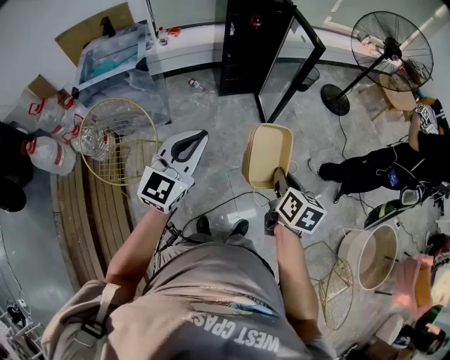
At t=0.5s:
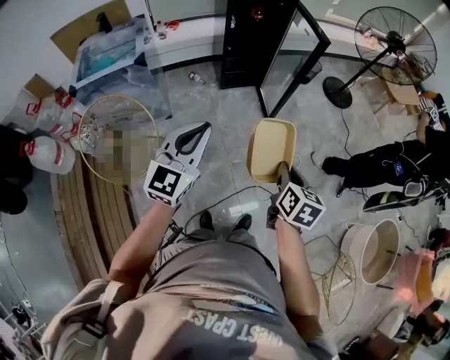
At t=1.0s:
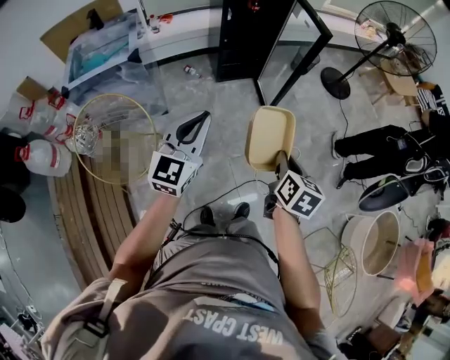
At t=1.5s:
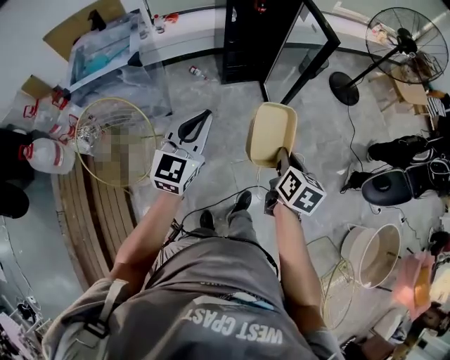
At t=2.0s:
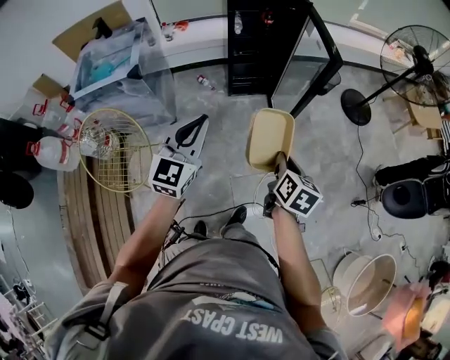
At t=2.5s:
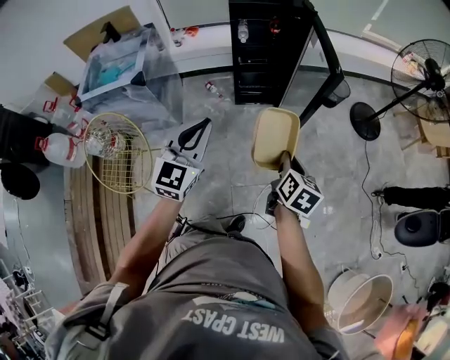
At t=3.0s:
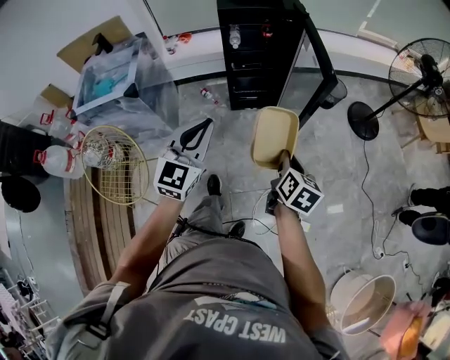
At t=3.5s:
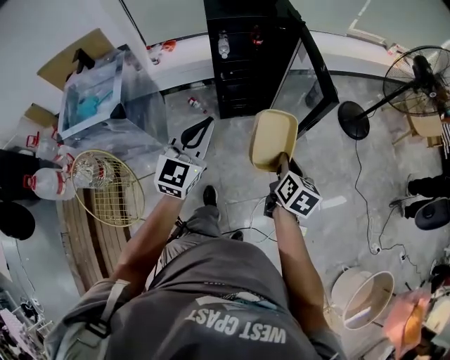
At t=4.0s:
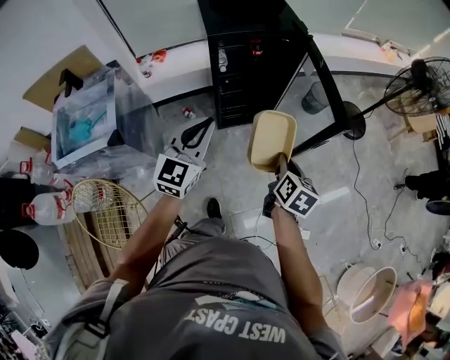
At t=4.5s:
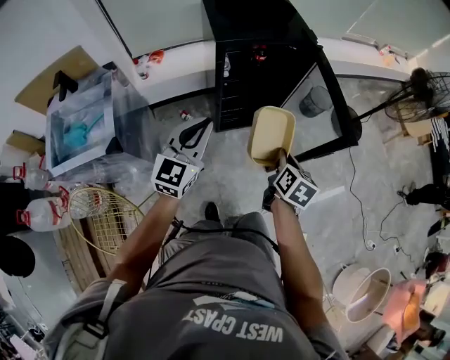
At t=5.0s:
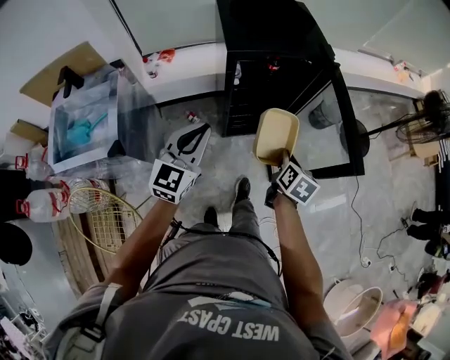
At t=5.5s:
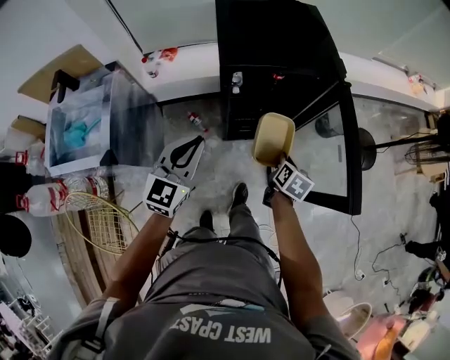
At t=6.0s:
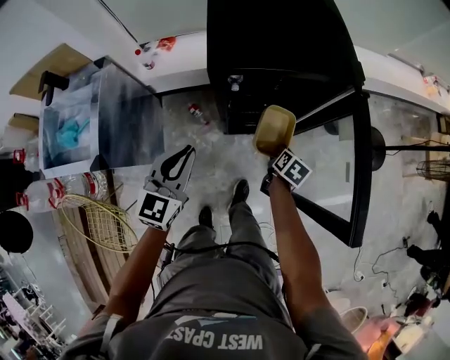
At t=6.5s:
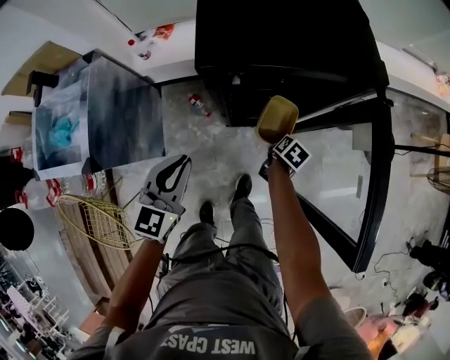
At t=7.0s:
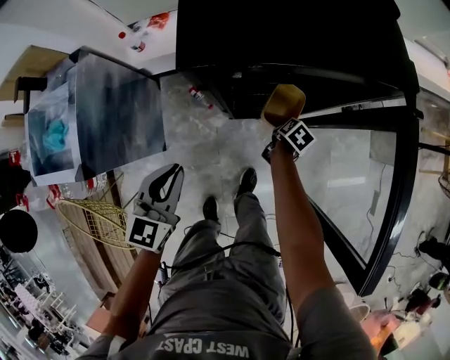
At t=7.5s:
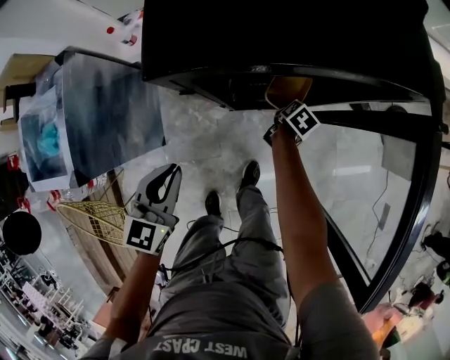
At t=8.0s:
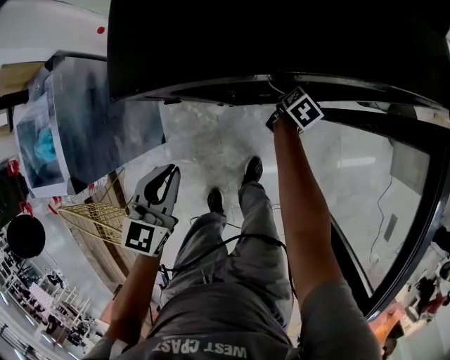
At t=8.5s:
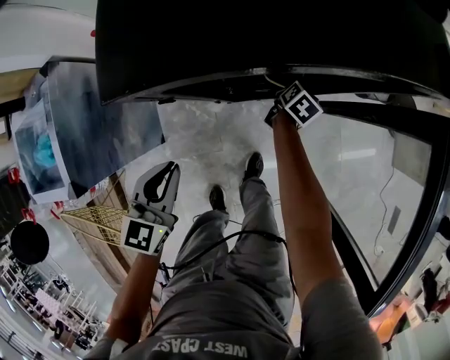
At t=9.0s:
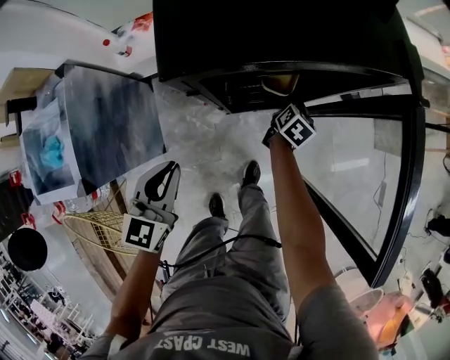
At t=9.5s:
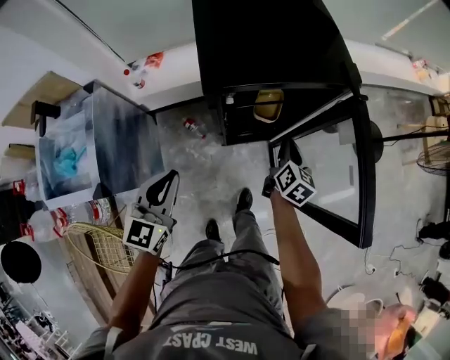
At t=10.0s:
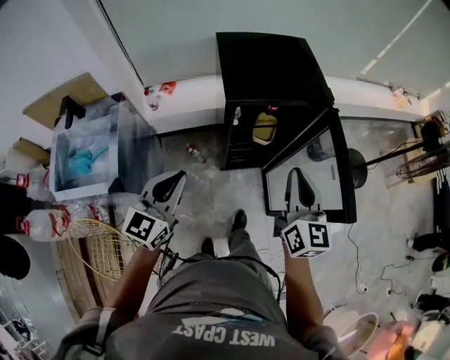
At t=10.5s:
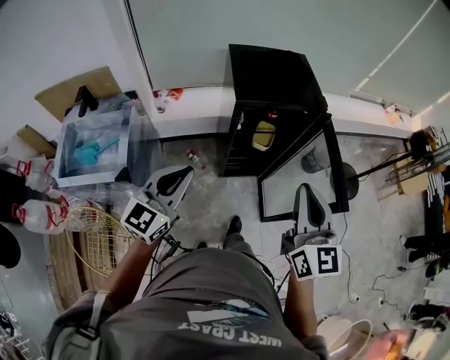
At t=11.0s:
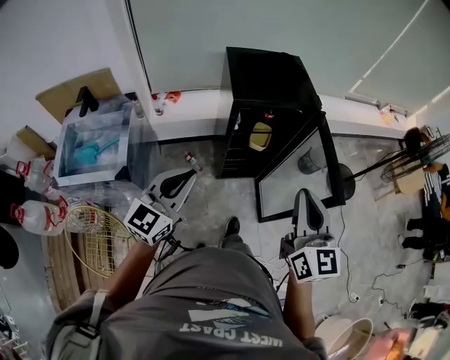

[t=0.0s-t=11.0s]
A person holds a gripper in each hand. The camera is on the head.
t=0.0s to t=2.0s: Both grippers travel together forward, approximately 20 cm.
t=2.0s to t=3.5s: Both grippers move forward, some 15 cm.
t=3.5s to t=5.5s: The right gripper travels forward, downward and to the left by some 30 cm, while the left gripper heads forward and to the left, covering about 25 cm.
t=5.5s to t=7.5s: The right gripper goes approximately 35 cm downward and forward, and changes its angle by about 20 degrees. Meanwhile the left gripper is displaced downward by some 15 cm, and changes its angle by some 20 degrees.
t=7.5s to t=9.0s: The right gripper shifts approximately 10 cm upward.
t=9.0s to t=11.0s: The right gripper moves upward and backward, roughly 60 cm, points its fingers some 40 degrees further upward, and closes. Meanwhile the left gripper heads upward and backward, covering approximately 30 cm, and rotates about 30 degrees.

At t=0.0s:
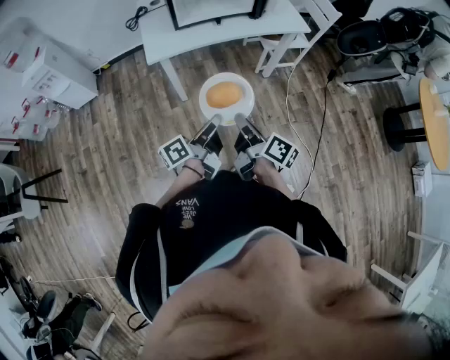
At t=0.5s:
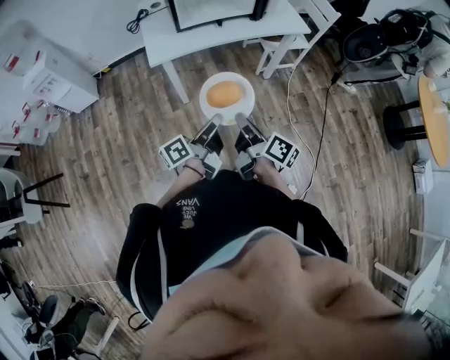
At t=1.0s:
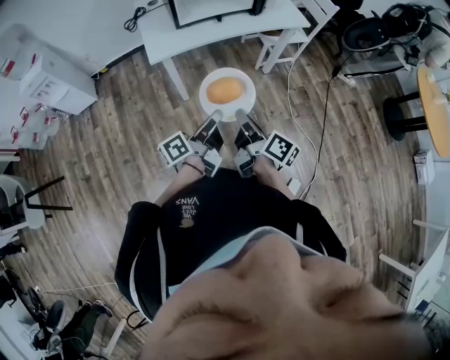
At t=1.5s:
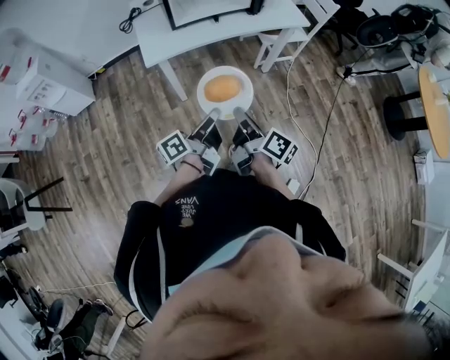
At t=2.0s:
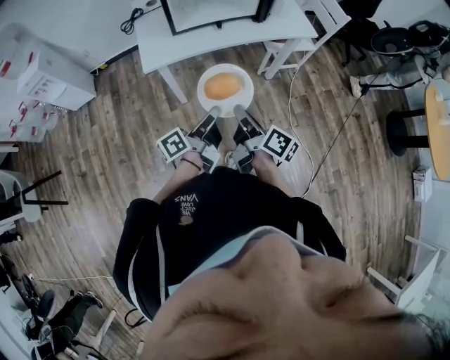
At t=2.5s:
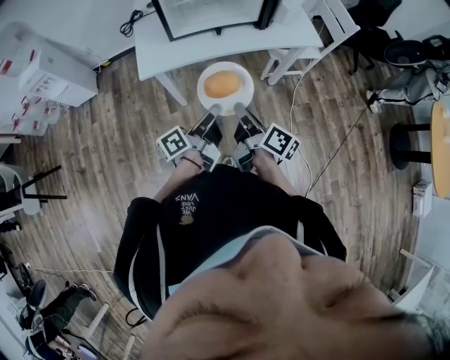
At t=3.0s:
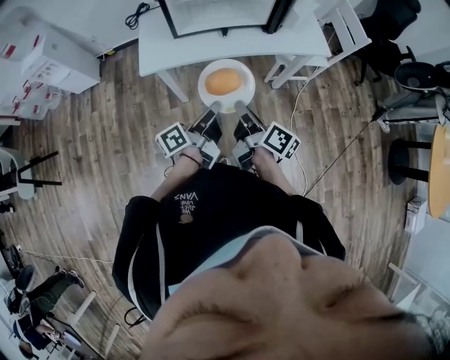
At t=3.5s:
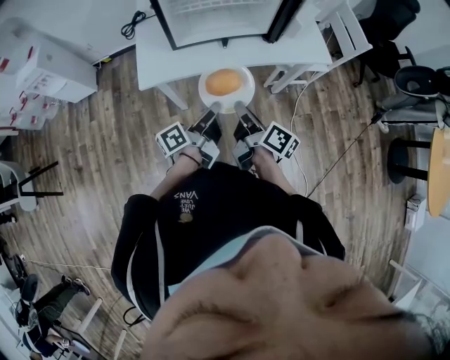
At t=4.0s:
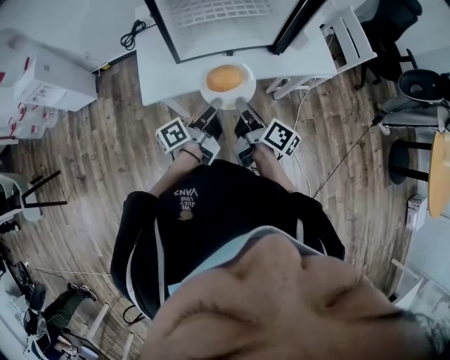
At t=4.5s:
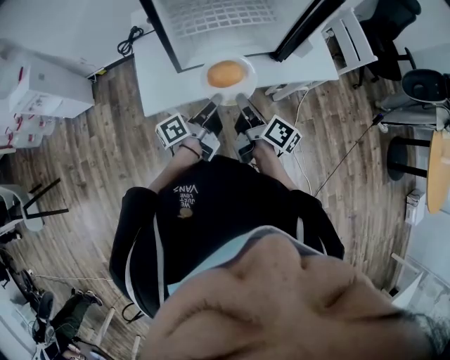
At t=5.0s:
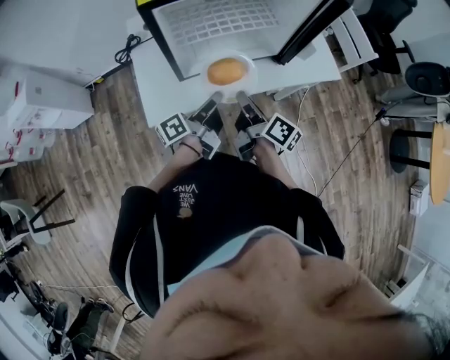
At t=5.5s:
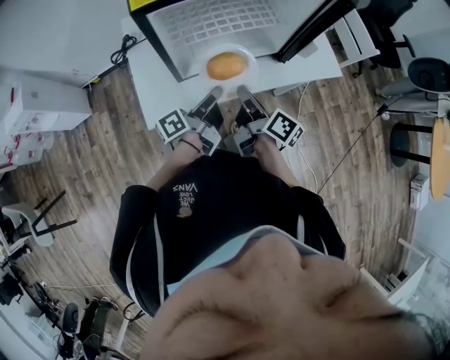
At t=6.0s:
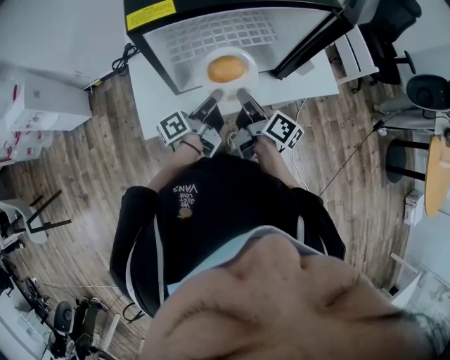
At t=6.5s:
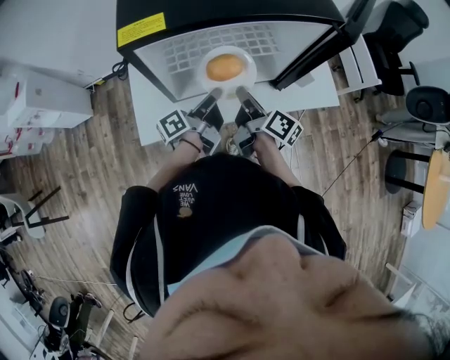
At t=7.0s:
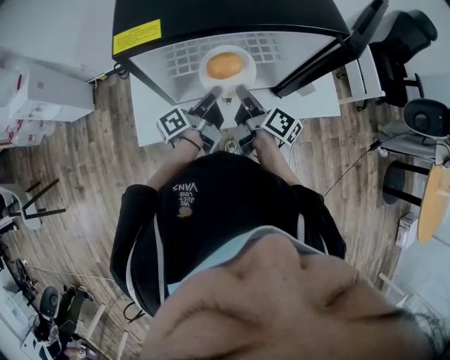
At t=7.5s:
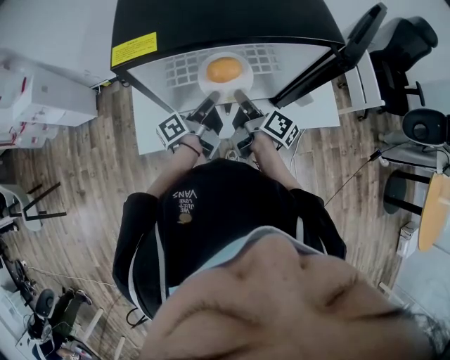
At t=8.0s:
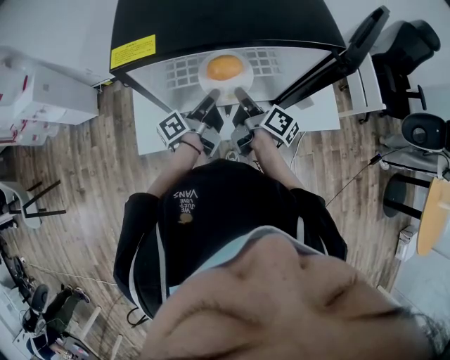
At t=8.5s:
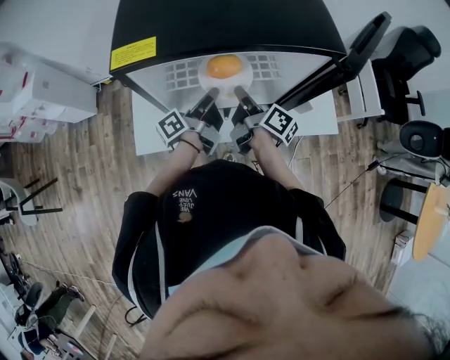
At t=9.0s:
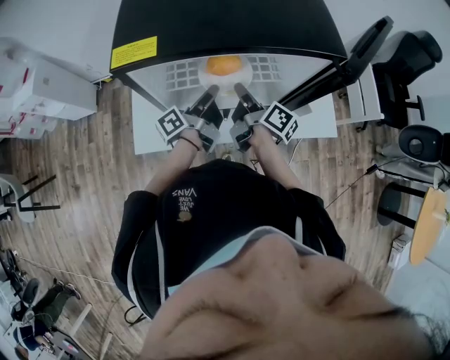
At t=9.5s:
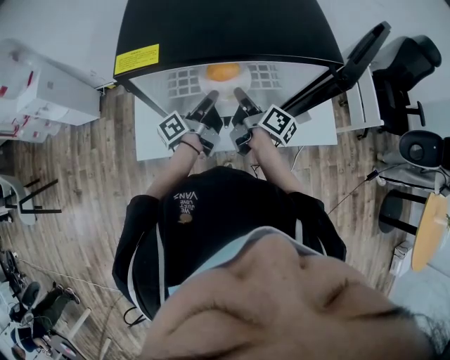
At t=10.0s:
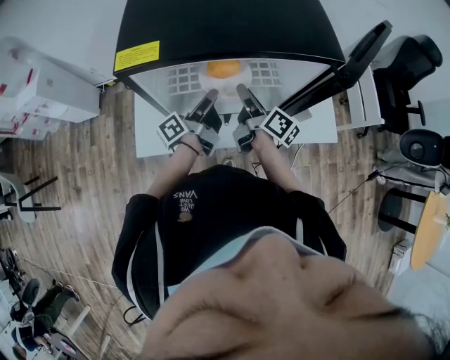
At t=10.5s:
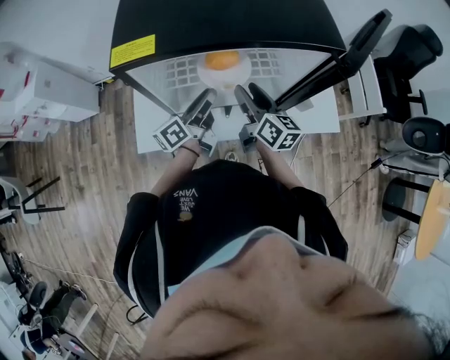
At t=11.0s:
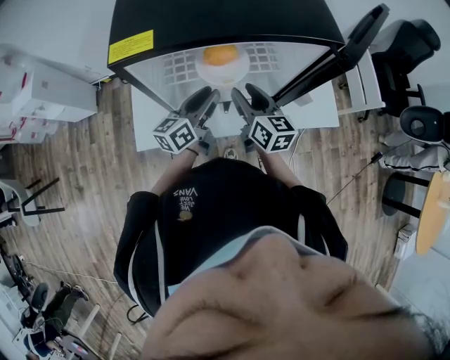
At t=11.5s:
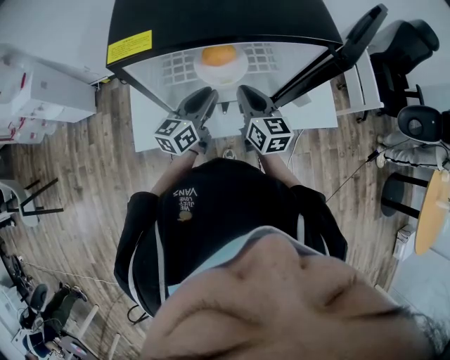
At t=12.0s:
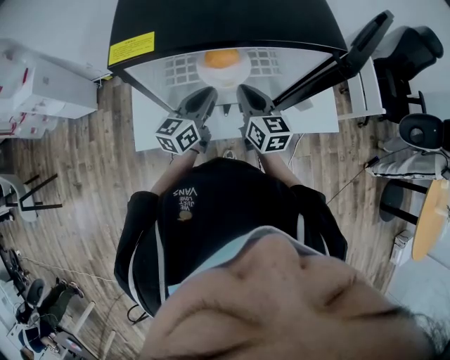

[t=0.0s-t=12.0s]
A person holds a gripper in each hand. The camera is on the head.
t=0.0s to t=2.0s: Both grippers travel together forward, some 10 cm.
t=2.0s to t=4.0s: The two grippers go approximately 25 cm forward.
t=4.0s to t=6.0s: The grippers both shift forward by approximately 15 cm.
t=6.0s to t=8.0s: Both grippers travel together forward, about 10 cm.
t=8.0s to t=10.0s: The right gripper opens its fingers. Meanwhile the left gripper opens up.
t=10.0s to t=12.0s: The left gripper rolls clockwise, seen from behind, by about 50 degrees. The right gripper rolls counterclockwise, seen from behind, by approximately 50 degrees, and closes up.

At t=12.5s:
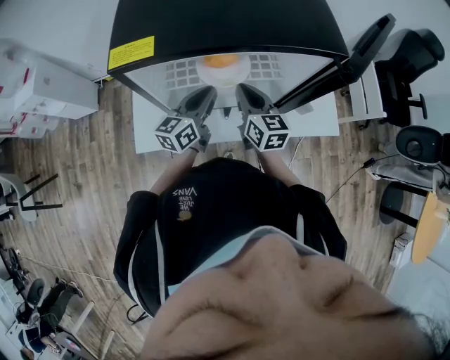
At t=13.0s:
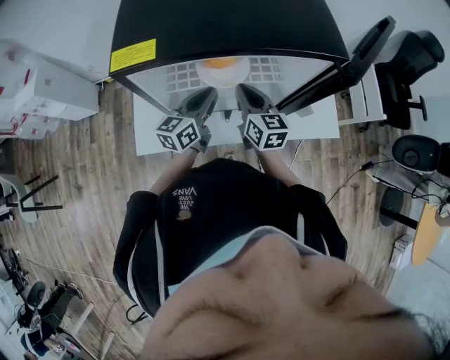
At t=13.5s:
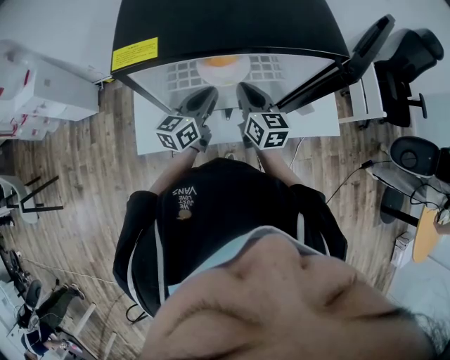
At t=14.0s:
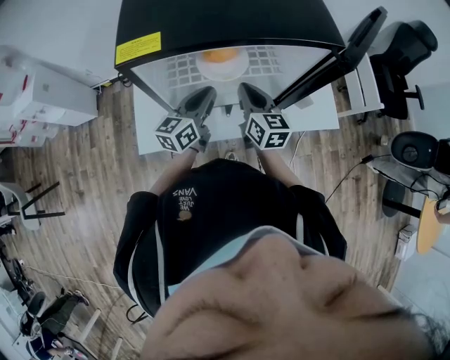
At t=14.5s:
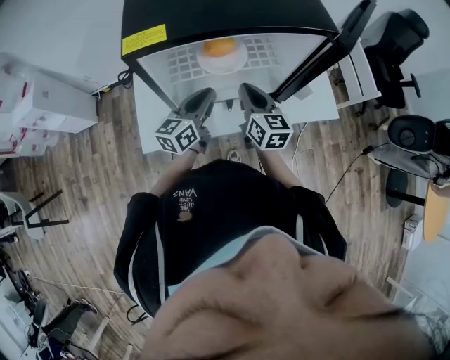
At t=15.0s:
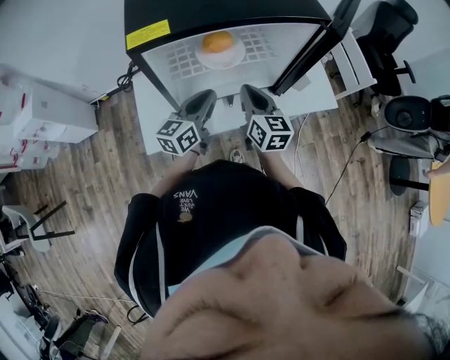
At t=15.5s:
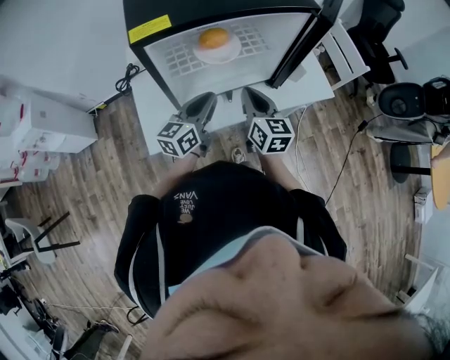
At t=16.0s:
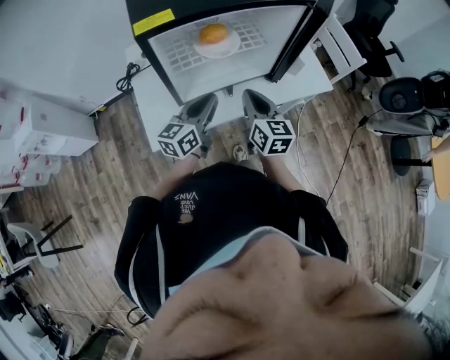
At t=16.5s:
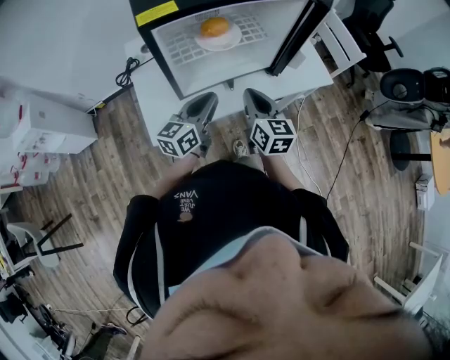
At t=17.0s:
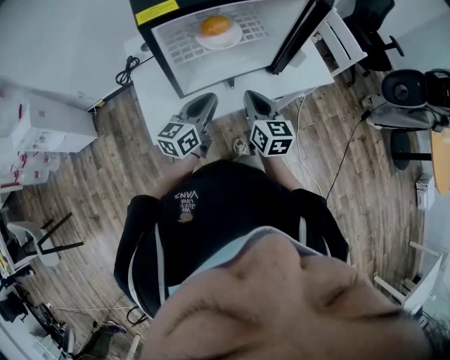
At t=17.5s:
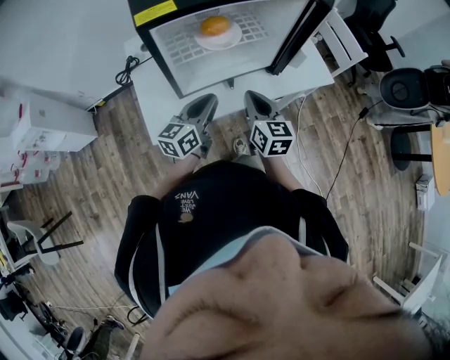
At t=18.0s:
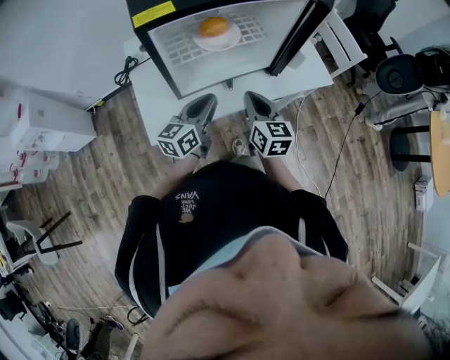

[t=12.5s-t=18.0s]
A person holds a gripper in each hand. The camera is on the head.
t=12.5s to t=14.5s: The grippers stay close to where they were, moving slightly.
t=14.5s to t=16.0s: Both grippers travel together backward, about 10 cm.
t=16.0s to t=18.0s: There are only small adjustments of the grippers.
